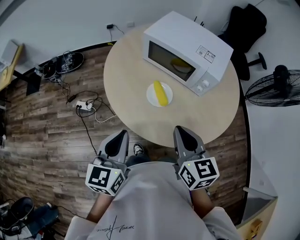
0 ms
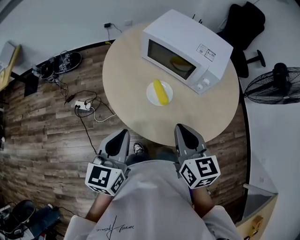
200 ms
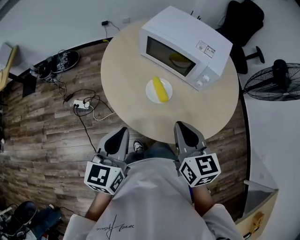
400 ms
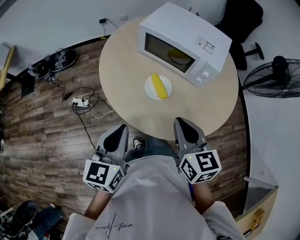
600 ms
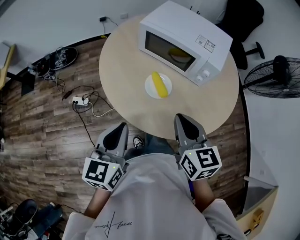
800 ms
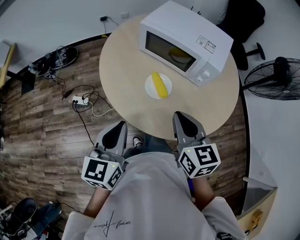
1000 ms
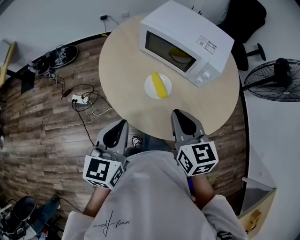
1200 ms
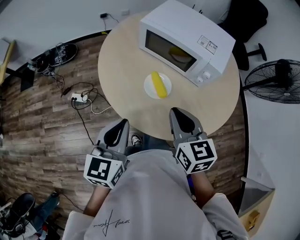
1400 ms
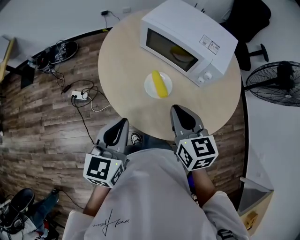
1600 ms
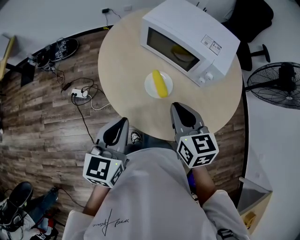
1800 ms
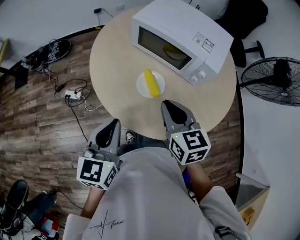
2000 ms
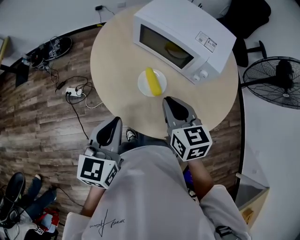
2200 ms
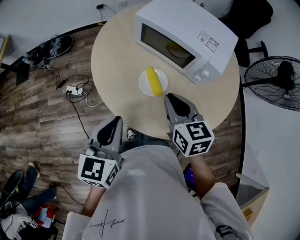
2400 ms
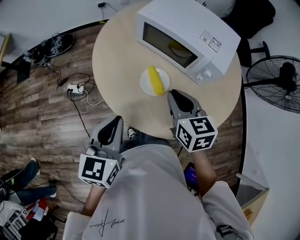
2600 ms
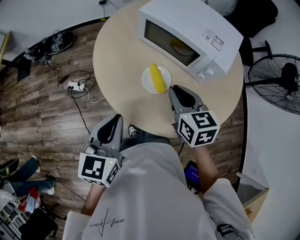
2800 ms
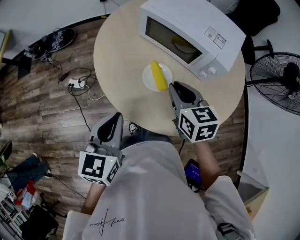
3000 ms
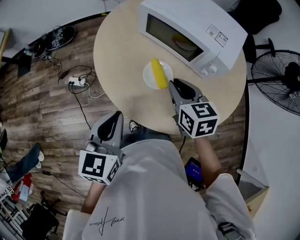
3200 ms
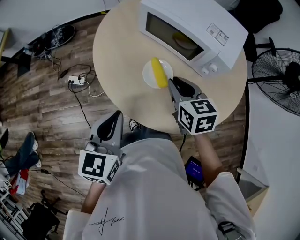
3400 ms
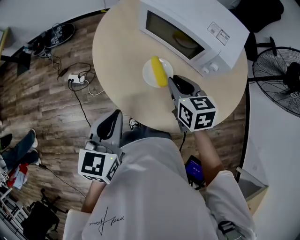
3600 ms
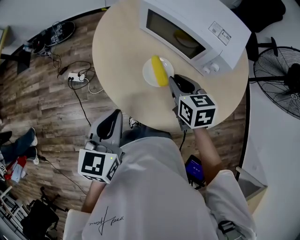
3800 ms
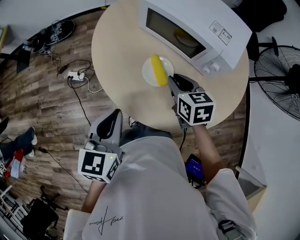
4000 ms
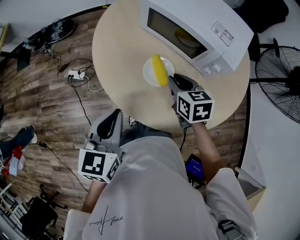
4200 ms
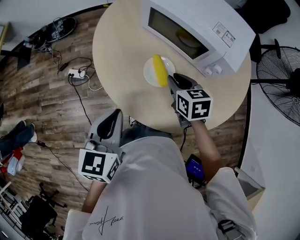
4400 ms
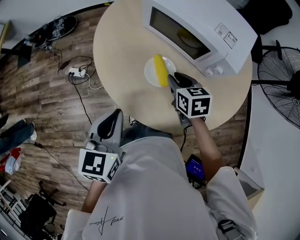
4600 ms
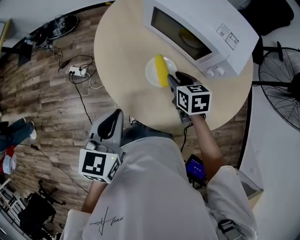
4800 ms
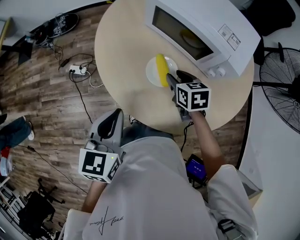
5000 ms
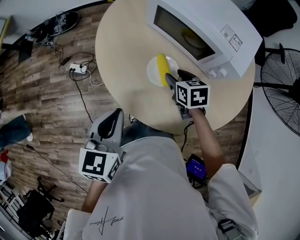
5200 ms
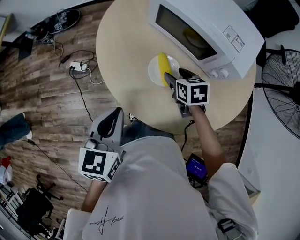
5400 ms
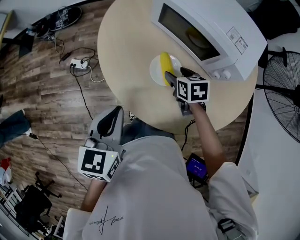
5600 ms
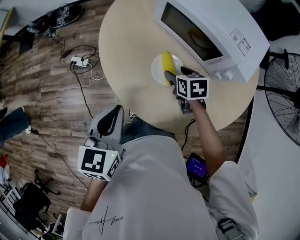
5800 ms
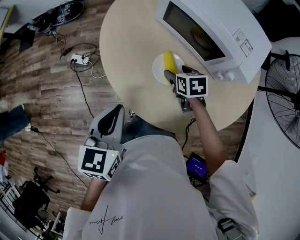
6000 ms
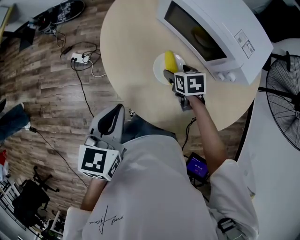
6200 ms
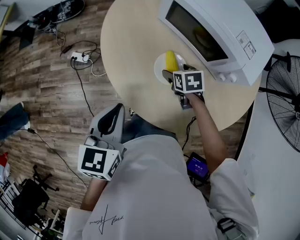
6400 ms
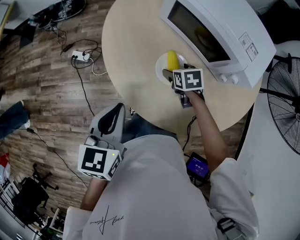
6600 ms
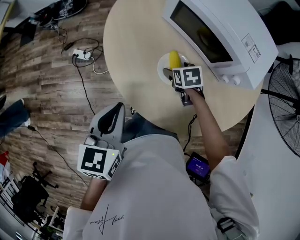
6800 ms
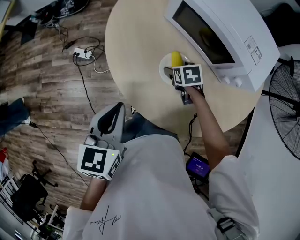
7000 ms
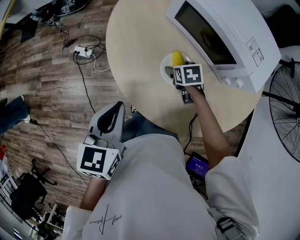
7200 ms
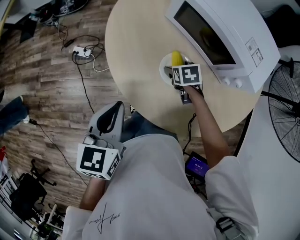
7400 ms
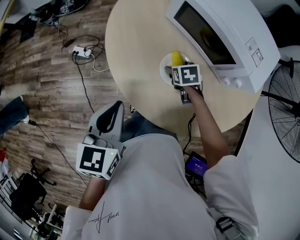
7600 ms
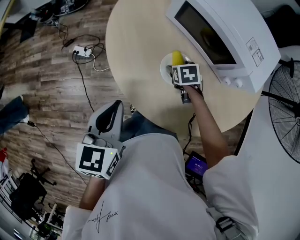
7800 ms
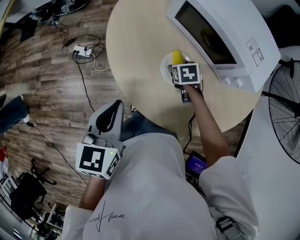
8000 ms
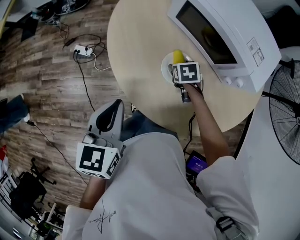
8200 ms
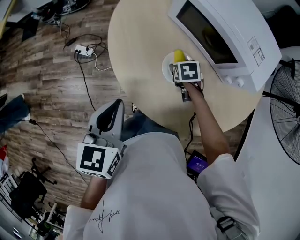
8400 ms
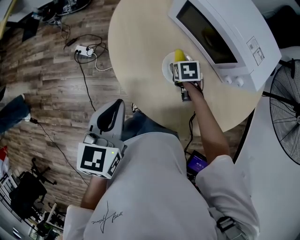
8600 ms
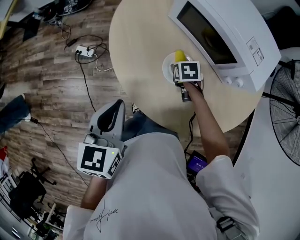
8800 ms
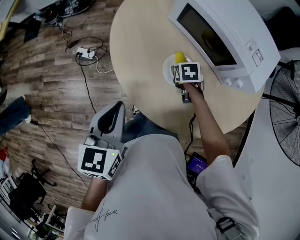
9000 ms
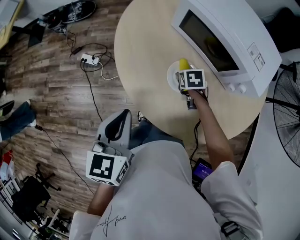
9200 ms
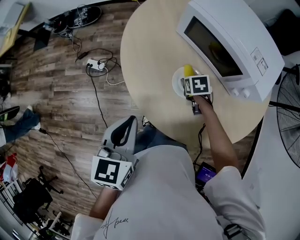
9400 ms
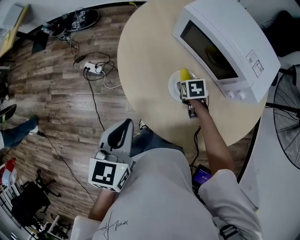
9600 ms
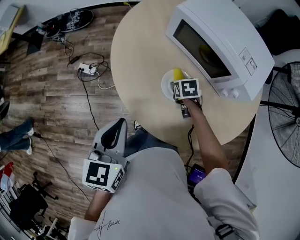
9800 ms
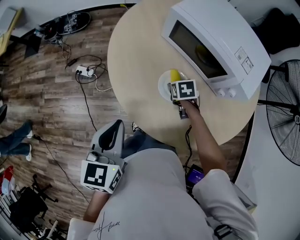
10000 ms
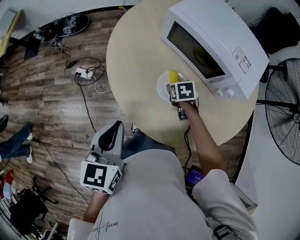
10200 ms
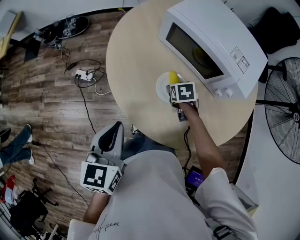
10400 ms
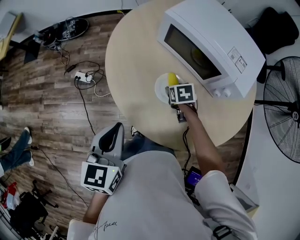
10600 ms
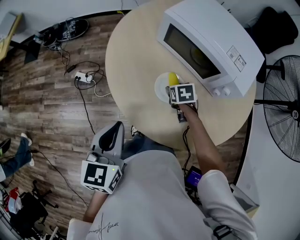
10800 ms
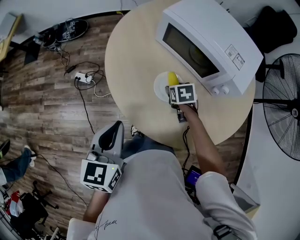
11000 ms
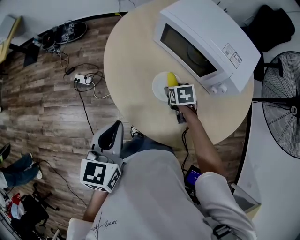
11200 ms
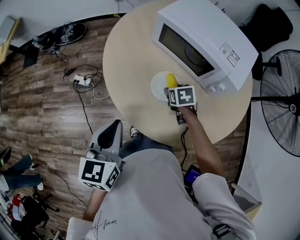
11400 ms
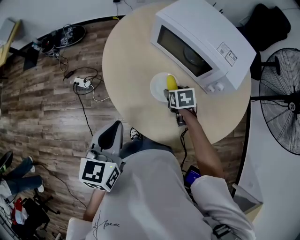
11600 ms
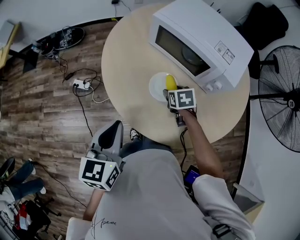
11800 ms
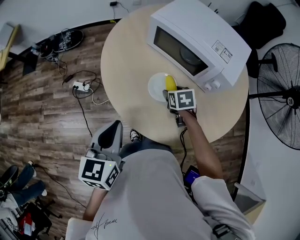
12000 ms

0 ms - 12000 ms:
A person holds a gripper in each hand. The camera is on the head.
0 ms - 1600 ms: The right gripper heads forward, covering roughly 5 cm.
1600 ms - 3000 ms: The right gripper is displaced forward by approximately 10 cm.
3000 ms - 4400 ms: The right gripper heads downward, covering roughly 10 cm.
4400 ms - 6000 ms: The right gripper heads downward, covering approximately 10 cm, and opens its fingers.
6000 ms - 7600 ms: The right gripper travels downward by some 5 cm.
7600 ms - 10400 ms: There are only small adjustments of the grippers.
10400 ms - 12000 ms: The right gripper shifts approximately 5 cm upward.

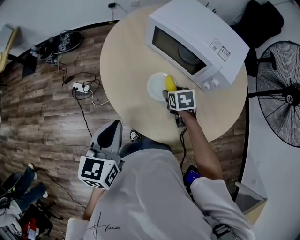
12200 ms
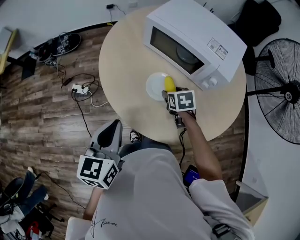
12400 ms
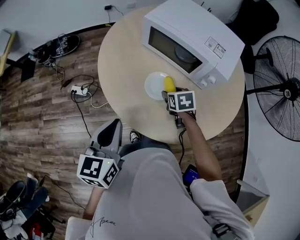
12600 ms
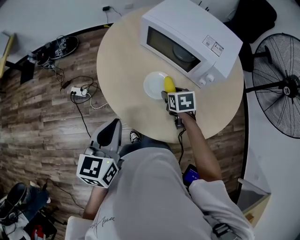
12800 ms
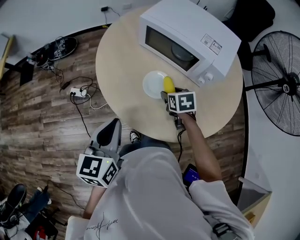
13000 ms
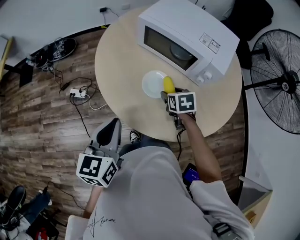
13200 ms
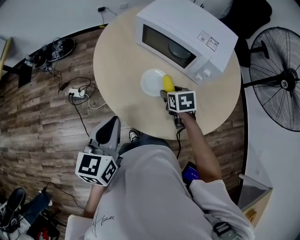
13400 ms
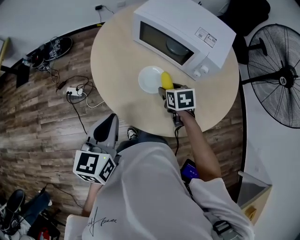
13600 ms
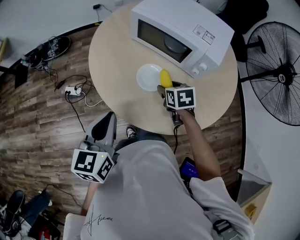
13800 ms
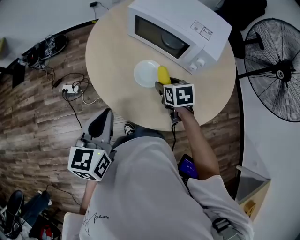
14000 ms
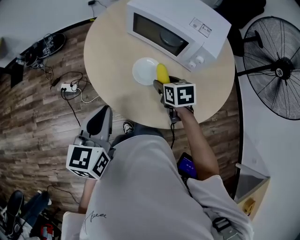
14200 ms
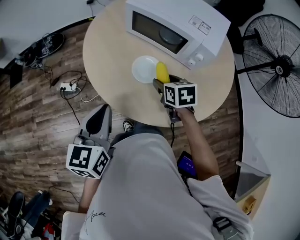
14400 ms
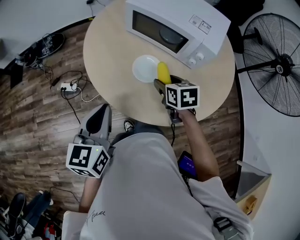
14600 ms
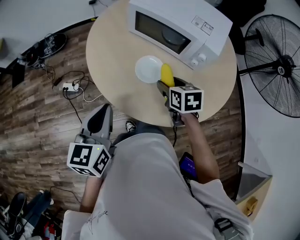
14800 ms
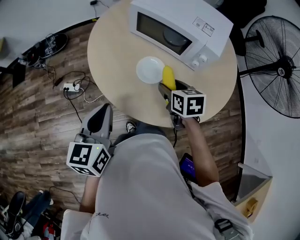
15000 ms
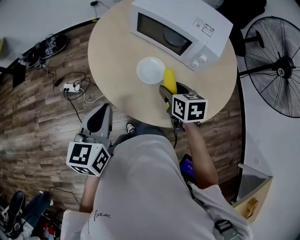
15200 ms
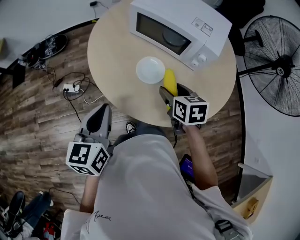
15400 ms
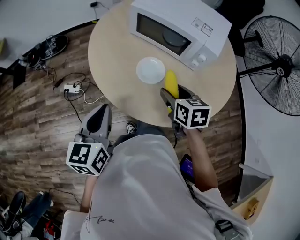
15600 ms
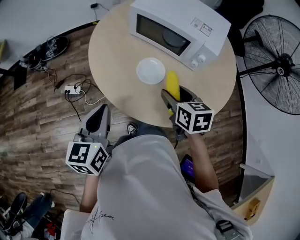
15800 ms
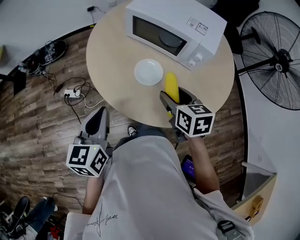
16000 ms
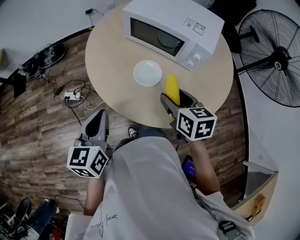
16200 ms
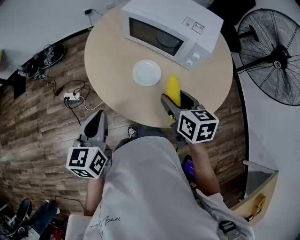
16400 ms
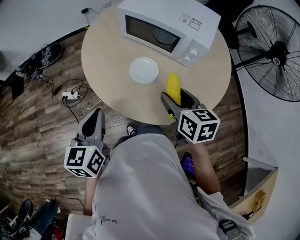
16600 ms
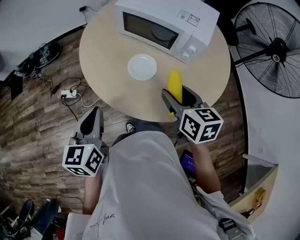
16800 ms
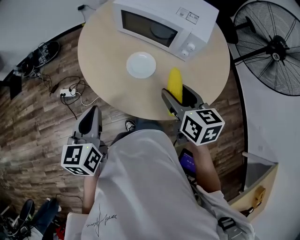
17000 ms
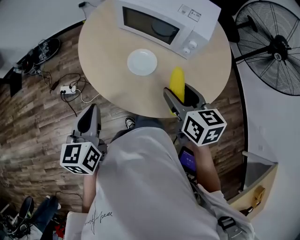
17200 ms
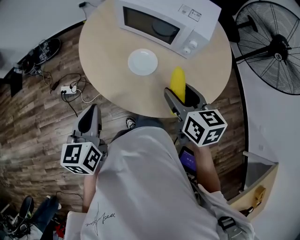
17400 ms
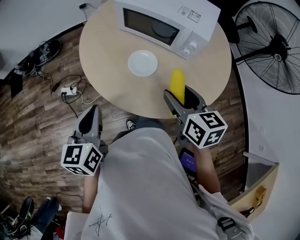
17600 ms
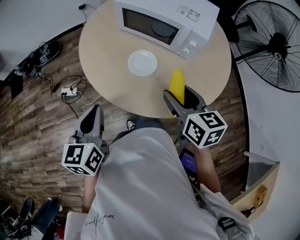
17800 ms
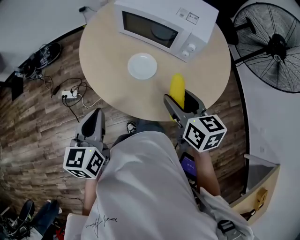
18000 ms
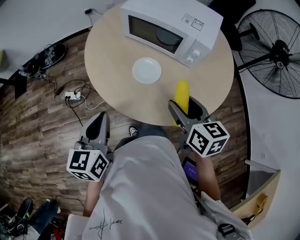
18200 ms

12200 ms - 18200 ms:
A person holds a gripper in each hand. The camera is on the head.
12200 ms - 13800 ms: The right gripper moves approximately 5 cm.
13800 ms - 15200 ms: The right gripper shifts about 5 cm upward.
15200 ms - 16600 ms: The right gripper goes roughly 10 cm upward and backward.
16600 ms - 18200 ms: The grippers make only small movements.

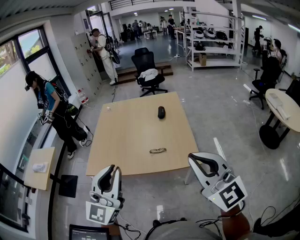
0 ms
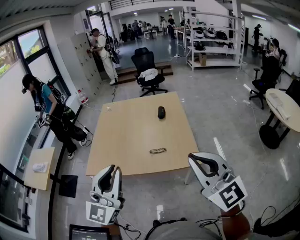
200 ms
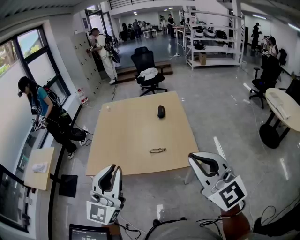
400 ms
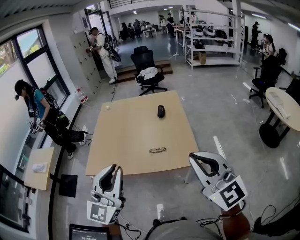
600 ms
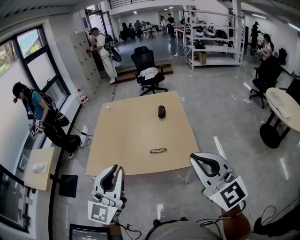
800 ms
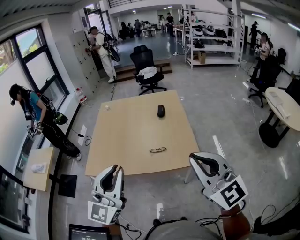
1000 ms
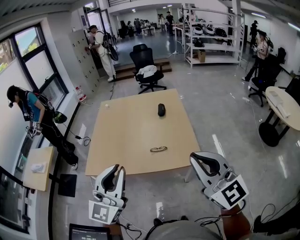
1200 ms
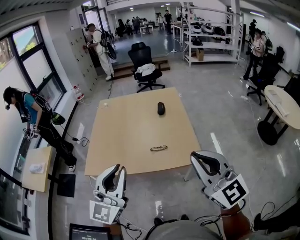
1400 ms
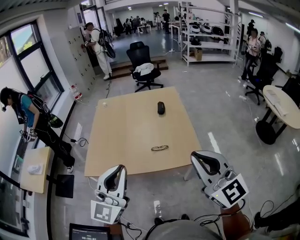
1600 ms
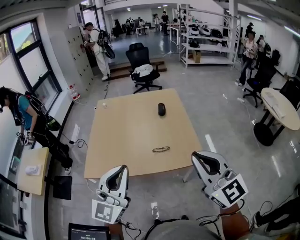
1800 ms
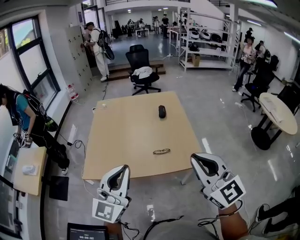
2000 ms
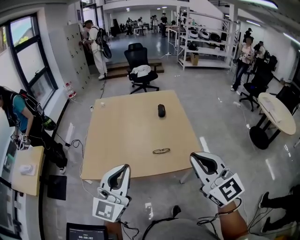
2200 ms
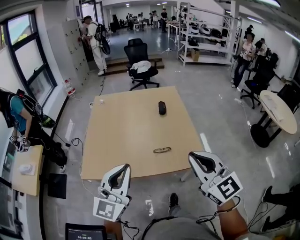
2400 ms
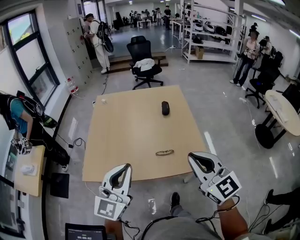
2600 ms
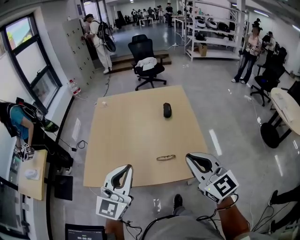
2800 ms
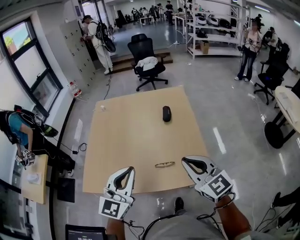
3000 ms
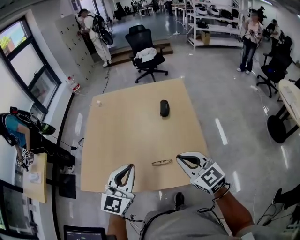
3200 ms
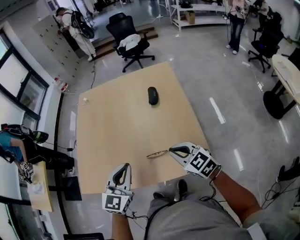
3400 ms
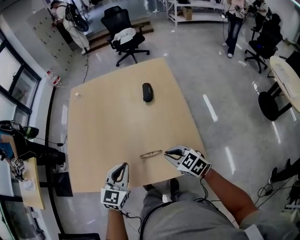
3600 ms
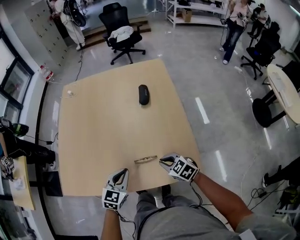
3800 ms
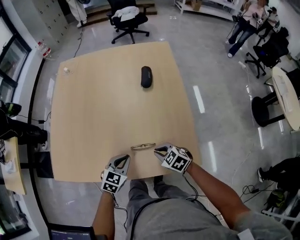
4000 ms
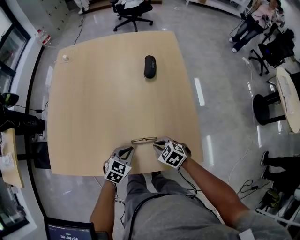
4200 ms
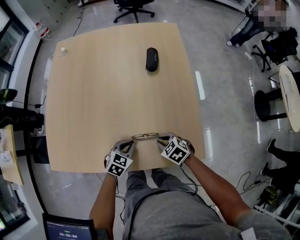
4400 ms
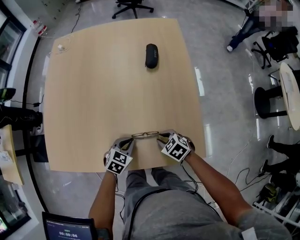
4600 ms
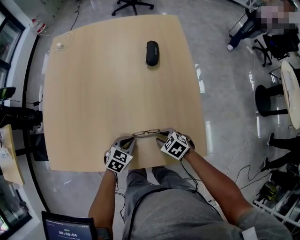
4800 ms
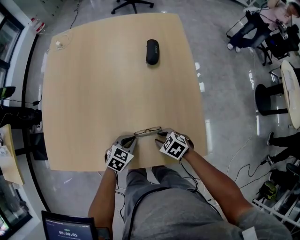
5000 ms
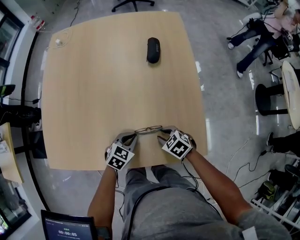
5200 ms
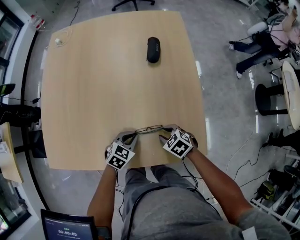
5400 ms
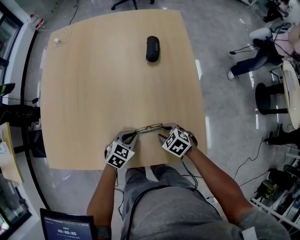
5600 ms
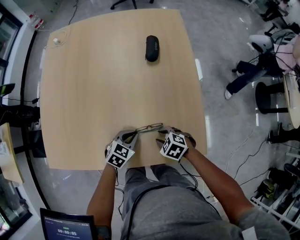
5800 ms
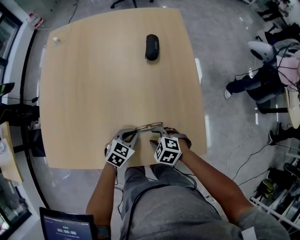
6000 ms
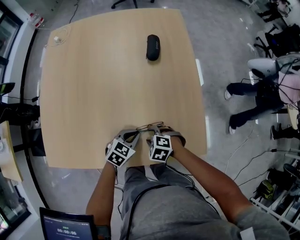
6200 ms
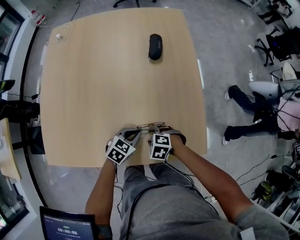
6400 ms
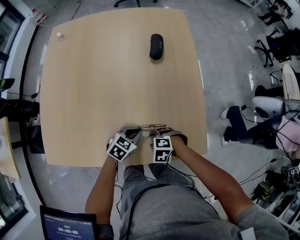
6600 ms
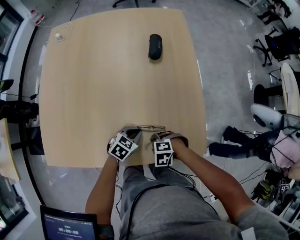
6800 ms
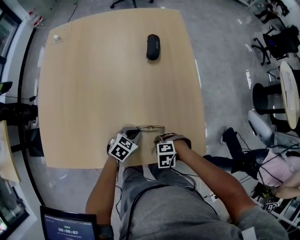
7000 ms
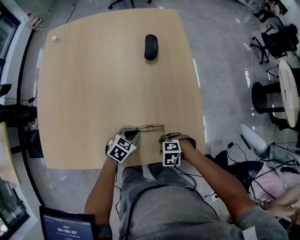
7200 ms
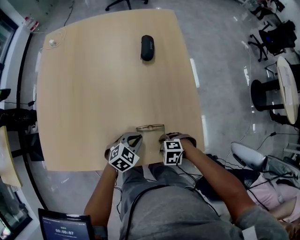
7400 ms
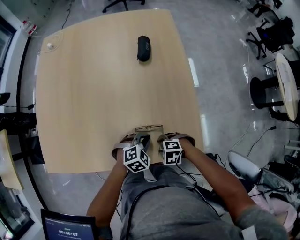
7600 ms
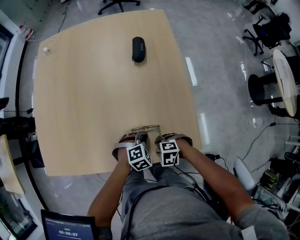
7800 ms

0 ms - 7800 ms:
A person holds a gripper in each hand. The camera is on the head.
0 ms - 1600 ms: The left gripper ends up about 5 cm from where it was, while the right gripper moves approximately 5 cm.
1600 ms - 3200 ms: Both grippers travel together forward and downward, about 30 cm. The right gripper turns by about 20 degrees.
3200 ms - 4600 ms: Both grippers move downward, approximately 40 cm. The left gripper angles its fingers downward, by roughly 40 degrees. Meanwhile the right gripper tilts its fingers some 50 degrees downward.
4600 ms - 6200 ms: The right gripper moves some 5 cm, swivels some 20 degrees, and opens its fingers.
6200 ms - 7800 ms: The left gripper ends up about 5 cm from where it was, and swivels about 40 degrees; the right gripper shifts by some 10 cm.
